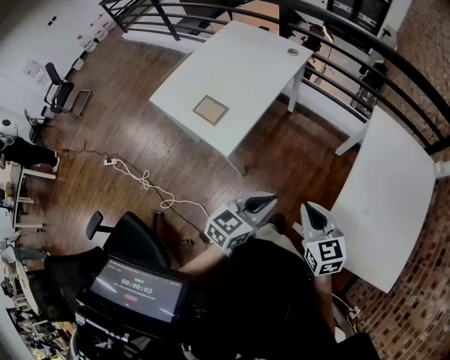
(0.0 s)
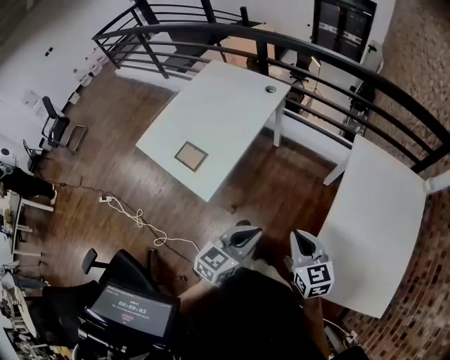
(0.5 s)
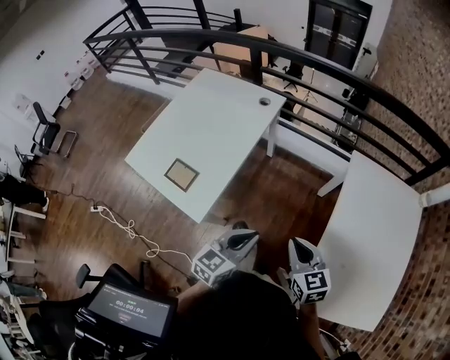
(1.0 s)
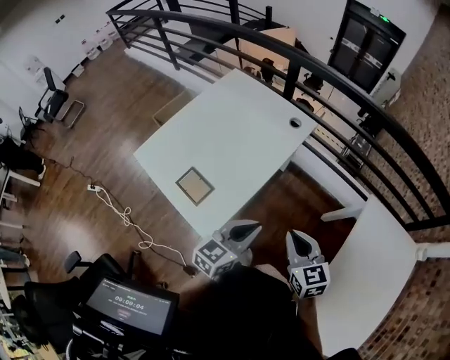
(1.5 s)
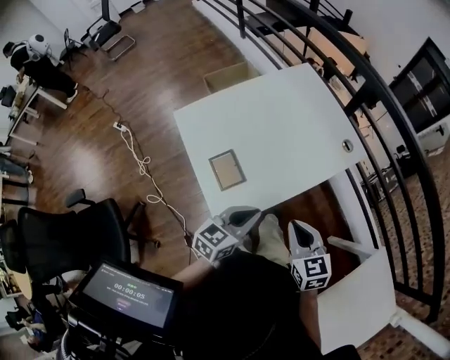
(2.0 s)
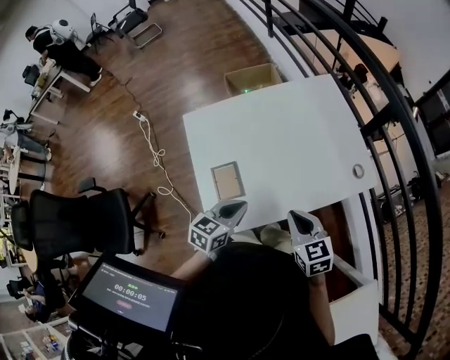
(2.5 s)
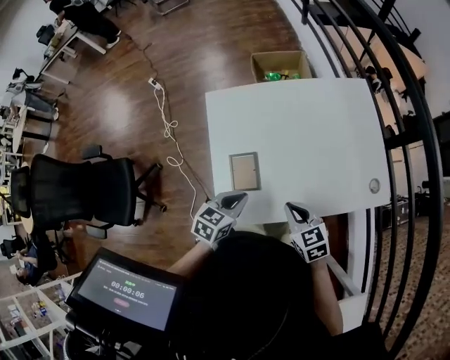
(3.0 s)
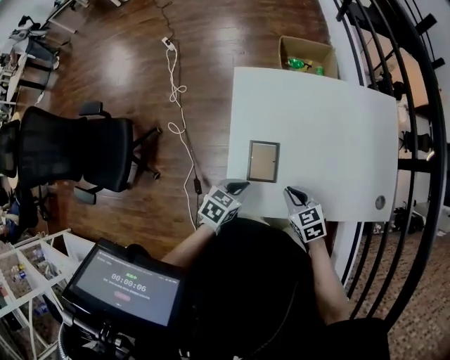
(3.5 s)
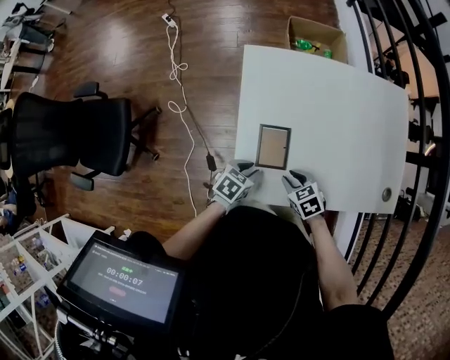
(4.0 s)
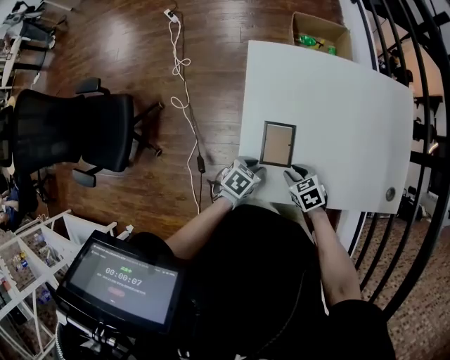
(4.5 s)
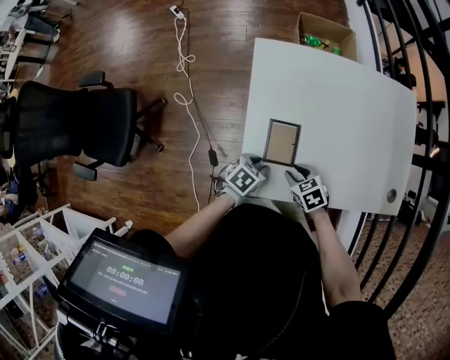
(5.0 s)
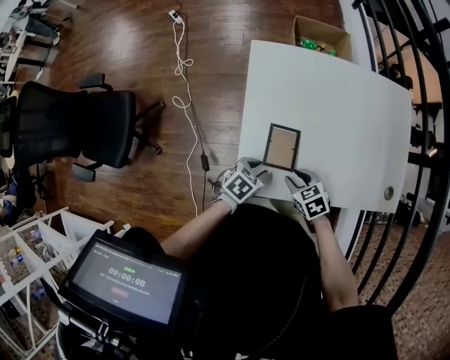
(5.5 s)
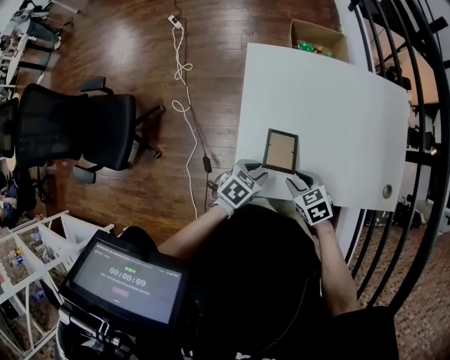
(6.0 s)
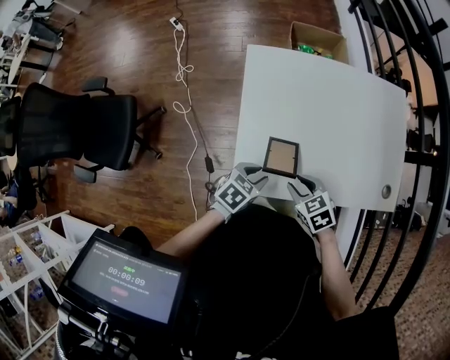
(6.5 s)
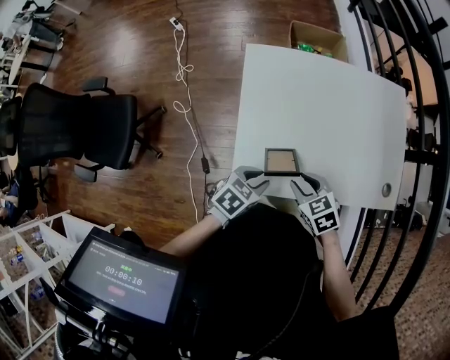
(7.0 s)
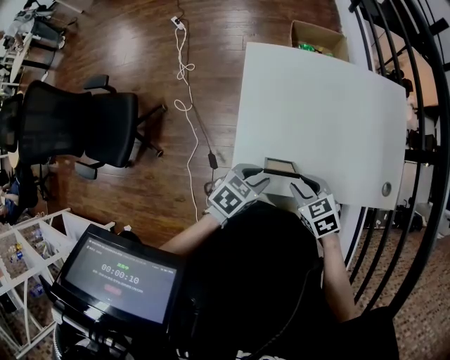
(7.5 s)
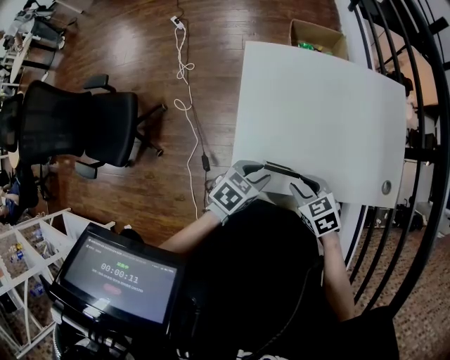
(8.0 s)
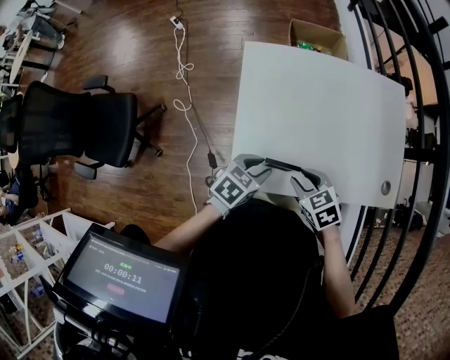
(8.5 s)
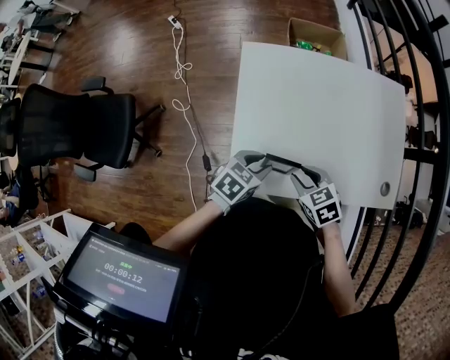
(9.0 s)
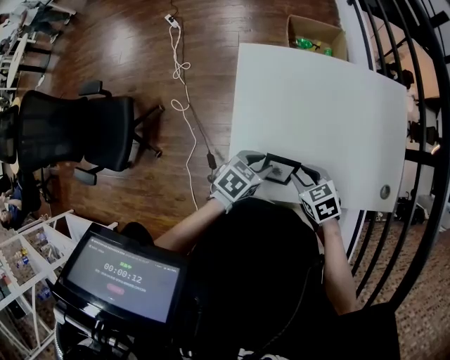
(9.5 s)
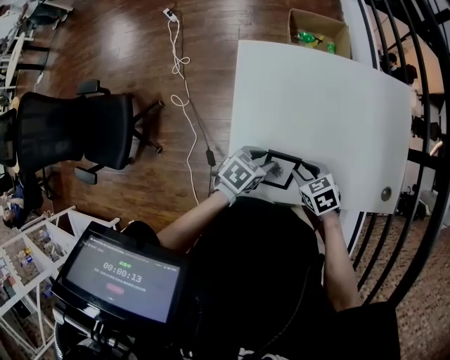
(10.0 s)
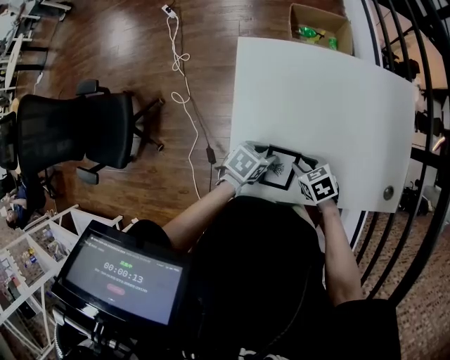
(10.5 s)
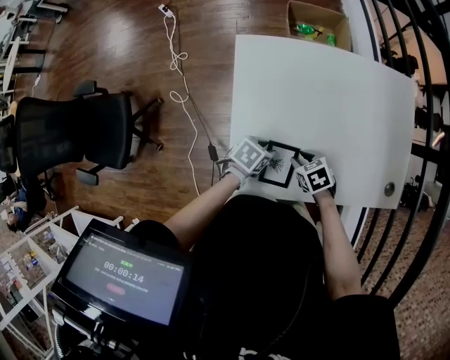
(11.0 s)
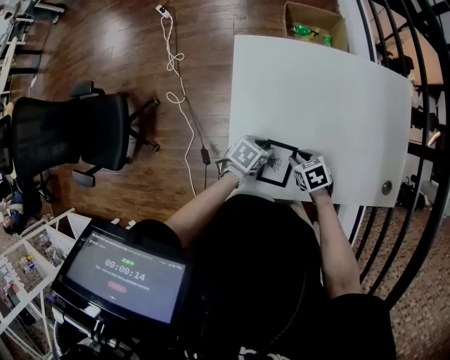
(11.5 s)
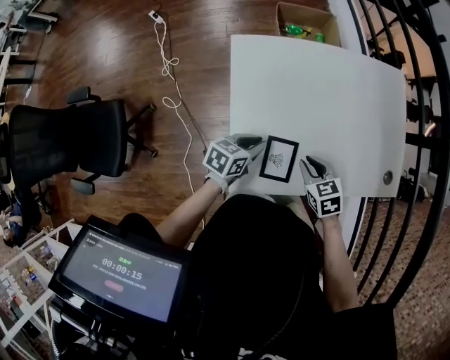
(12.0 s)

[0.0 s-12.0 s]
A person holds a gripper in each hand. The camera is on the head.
0.0 to 2.0 s: The left gripper shifts by roughly 35 cm, and changes its angle by roughly 30 degrees. The right gripper shifts by roughly 35 cm, and swivels some 30 degrees.
2.0 to 4.0 s: Both grippers travel together downward, some 25 cm. The right gripper swivels some 60 degrees, and opens its fingers. Meanwhile the left gripper tilts its fingers about 30 degrees downward, and opens.
4.0 to 6.0 s: The two grippers go approximately 5 cm upward.
6.0 to 8.0 s: The left gripper shifts approximately 5 cm upward.
8.0 to 10.0 s: The left gripper shifts by about 10 cm, while the right gripper moves roughly 10 cm.
10.0 to 12.0 s: The right gripper moves some 5 cm downward and comes back.

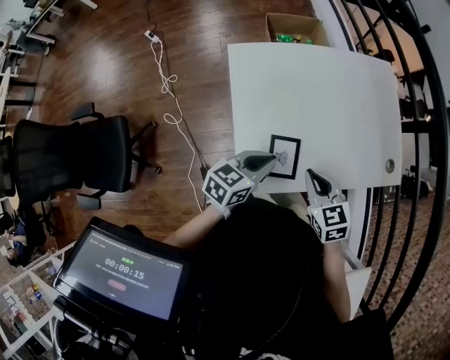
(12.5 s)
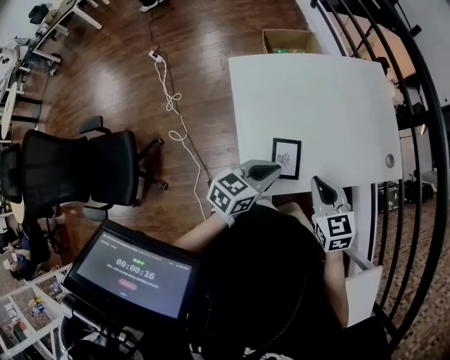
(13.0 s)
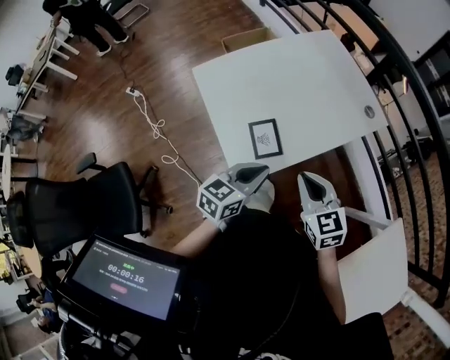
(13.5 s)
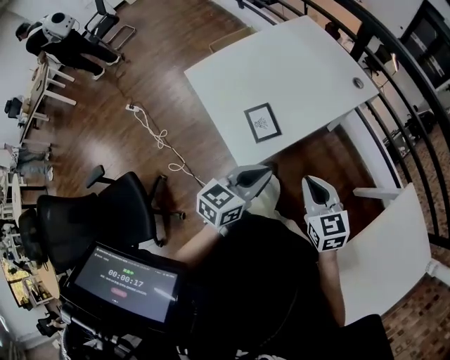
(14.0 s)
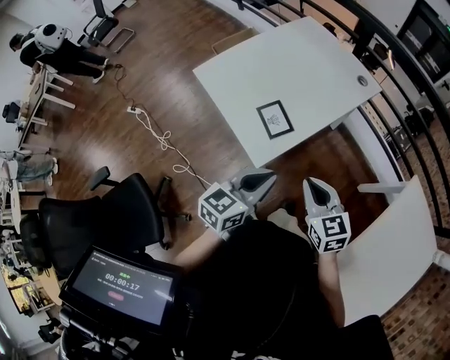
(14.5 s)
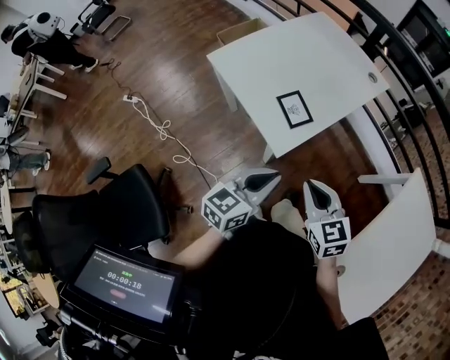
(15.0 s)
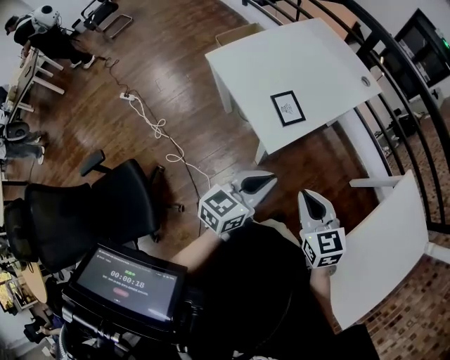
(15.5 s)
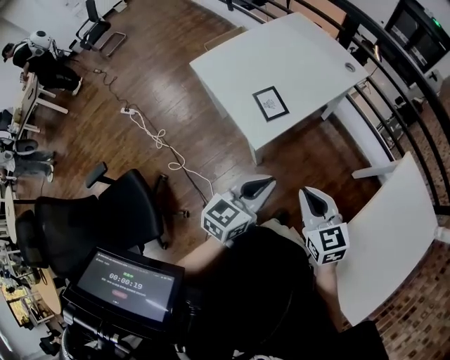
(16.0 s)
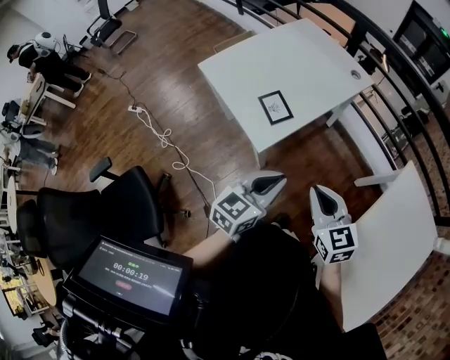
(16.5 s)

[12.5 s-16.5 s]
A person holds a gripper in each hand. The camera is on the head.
12.5 to 14.5 s: Both grippers travel together backward and to the right, approximately 20 cm. The left gripper changes its angle by some 30 degrees. The right gripper rotates approximately 40 degrees.
14.5 to 16.5 s: The right gripper moves backward and upward, approximately 10 cm, and goes to the left and returns, about 10 cm each way. Meanwhile the left gripper is displaced backward by approximately 10 cm, and travels to the left and back again, some 10 cm each way.

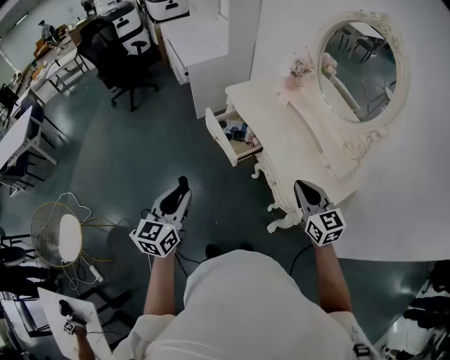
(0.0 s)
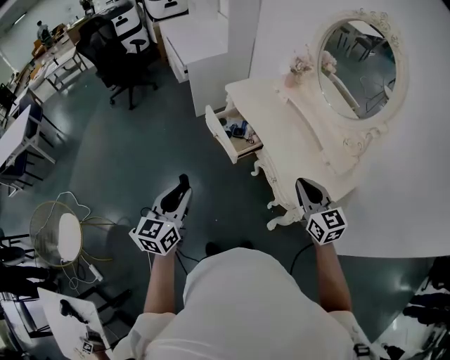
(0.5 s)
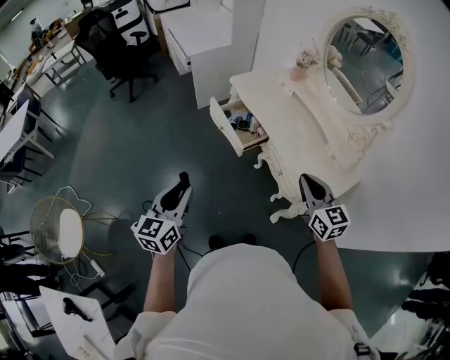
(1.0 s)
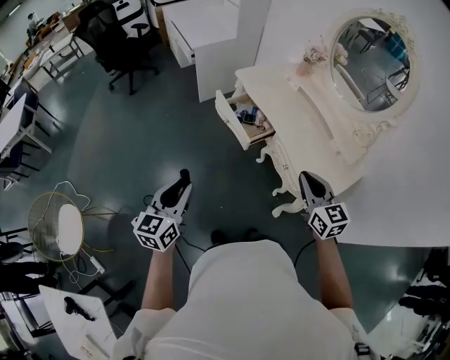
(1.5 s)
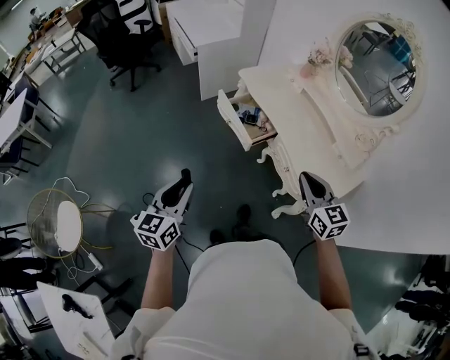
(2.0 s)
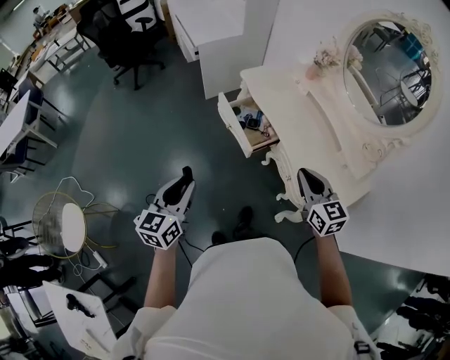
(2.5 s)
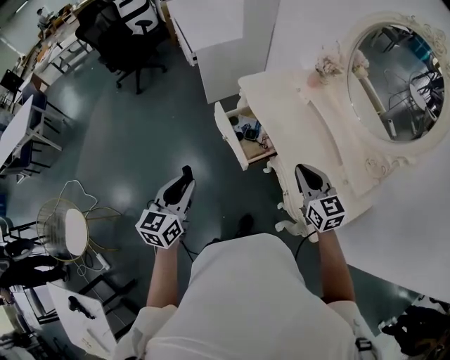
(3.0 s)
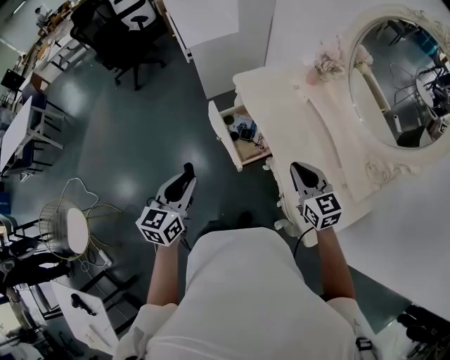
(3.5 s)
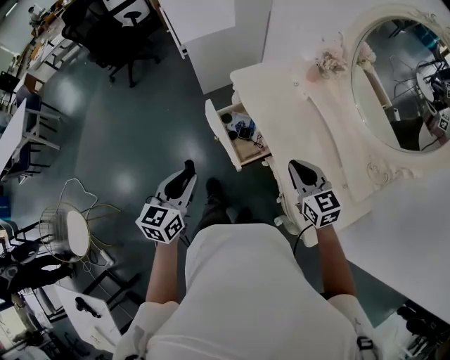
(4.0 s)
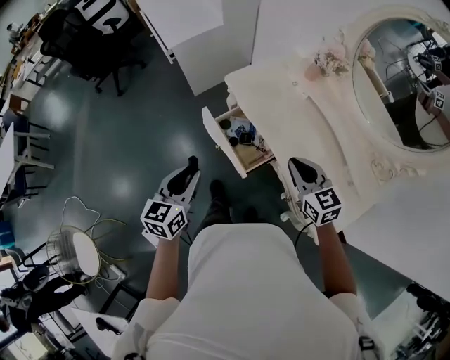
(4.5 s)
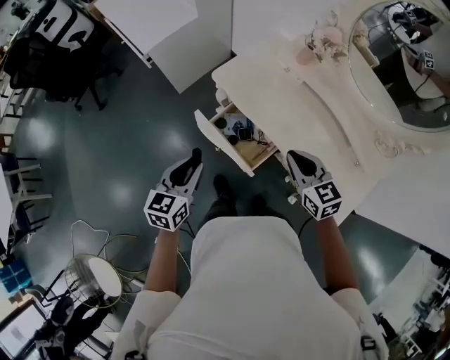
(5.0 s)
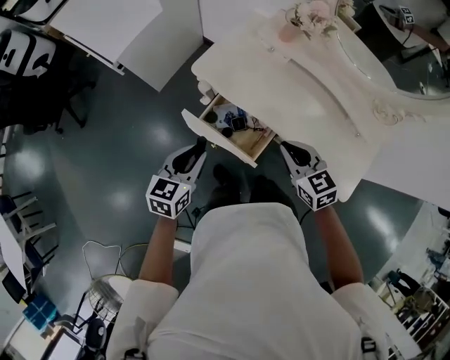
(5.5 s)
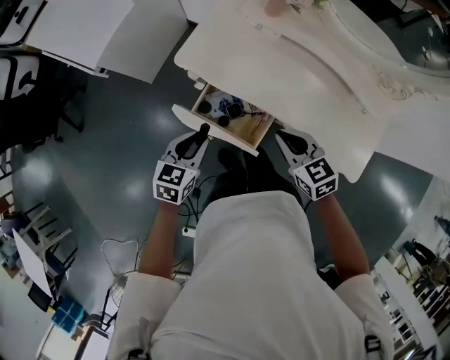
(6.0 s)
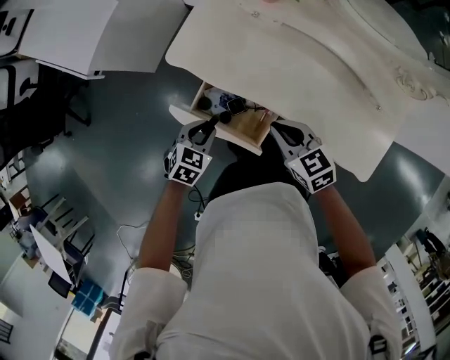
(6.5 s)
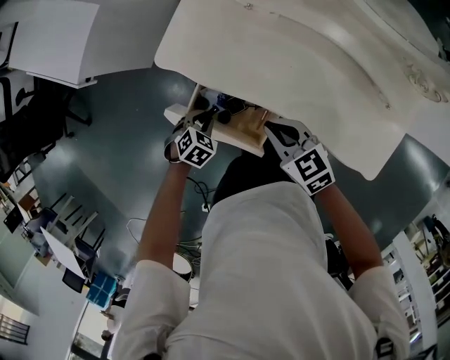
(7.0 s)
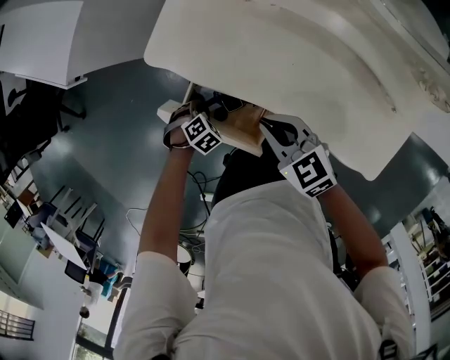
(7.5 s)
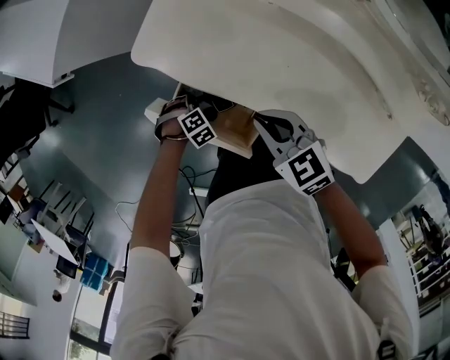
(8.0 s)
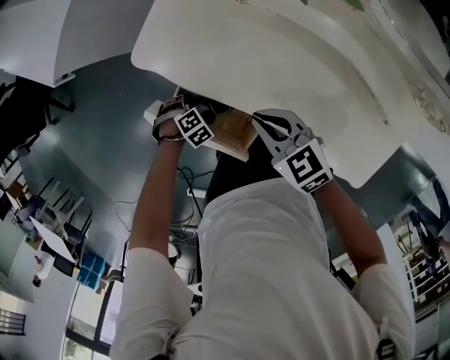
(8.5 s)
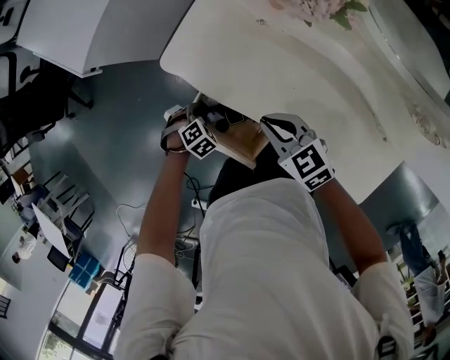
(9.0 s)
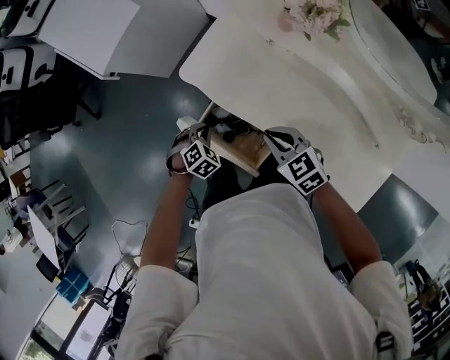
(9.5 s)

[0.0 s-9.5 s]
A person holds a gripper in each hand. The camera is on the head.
0.0 to 2.0 s: The two grippers go approximately 5 cm to the left.
2.0 to 4.0 s: The left gripper is displaced forward and to the right by roughly 25 cm, while the right gripper travels forward by roughly 25 cm.
4.0 to 5.5 s: The right gripper changes place by about 15 cm, and changes its angle by some 30 degrees. Meanwhile the left gripper moves roughly 25 cm, and turns by some 40 degrees.
5.5 to 7.5 s: The left gripper moves downward, roughly 30 cm, and angles its fingers downward, by roughly 60 degrees; the right gripper travels downward by approximately 10 cm.
7.5 to 9.5 s: The left gripper travels upward by about 10 cm.

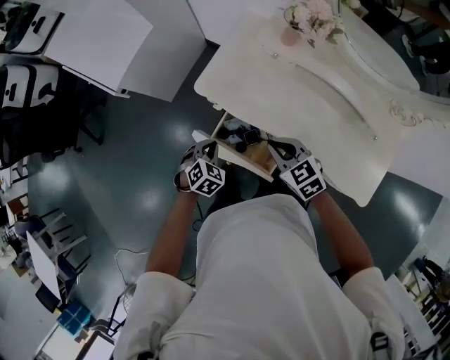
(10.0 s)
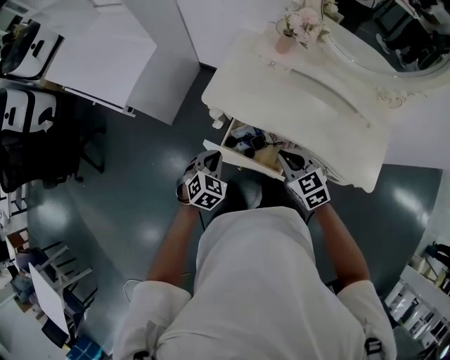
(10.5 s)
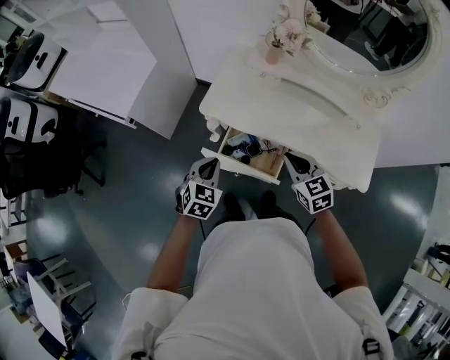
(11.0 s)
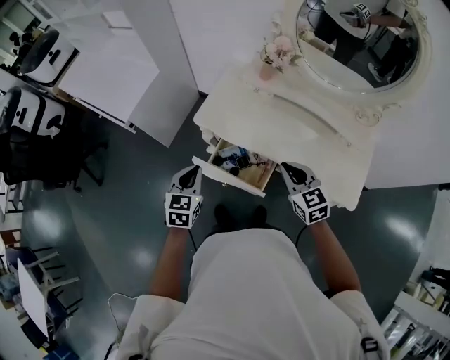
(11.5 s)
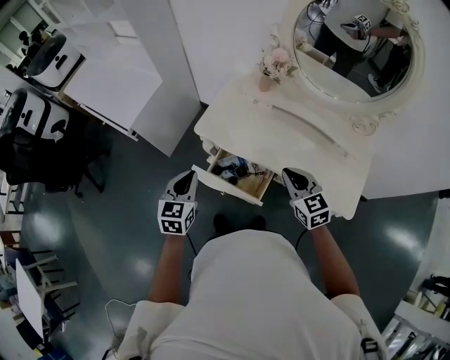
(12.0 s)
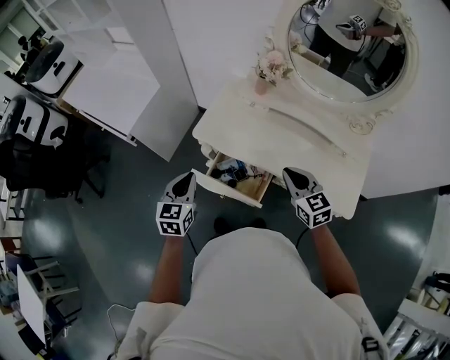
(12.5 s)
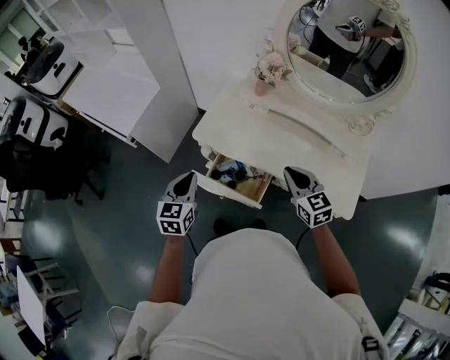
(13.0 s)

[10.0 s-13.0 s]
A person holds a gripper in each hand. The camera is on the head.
10.0 to 11.5 s: The right gripper is displaced upward, backward and to the right by some 15 cm, and turns by roughly 20 degrees. Meanwhile the left gripper goes roughly 15 cm upward, and swivels approximately 40 degrees.
11.5 to 13.0 s: The grippers stay close to where they were, moving slightly.
